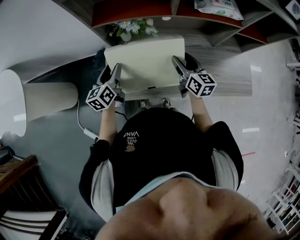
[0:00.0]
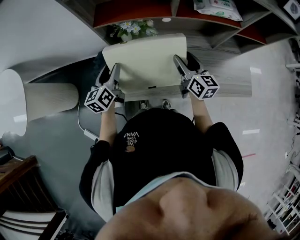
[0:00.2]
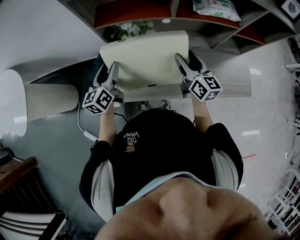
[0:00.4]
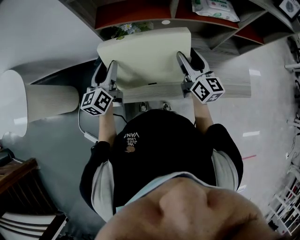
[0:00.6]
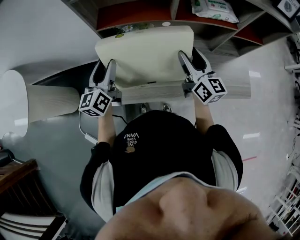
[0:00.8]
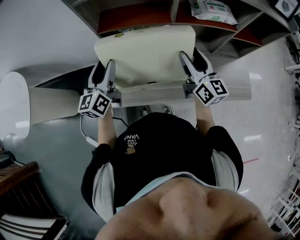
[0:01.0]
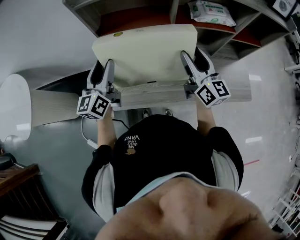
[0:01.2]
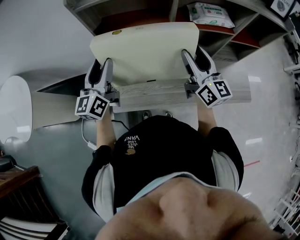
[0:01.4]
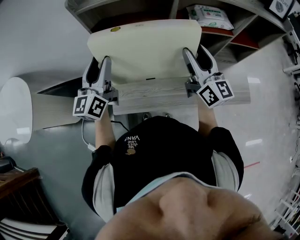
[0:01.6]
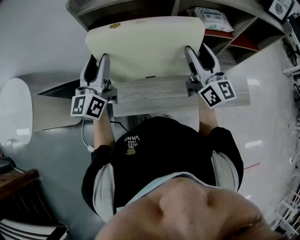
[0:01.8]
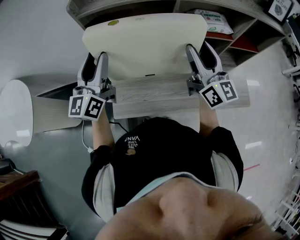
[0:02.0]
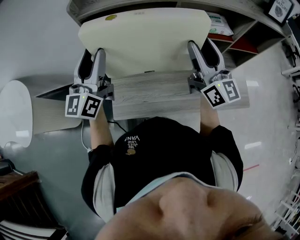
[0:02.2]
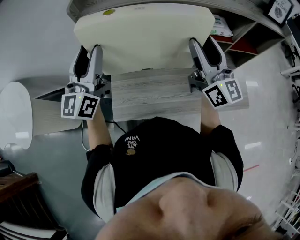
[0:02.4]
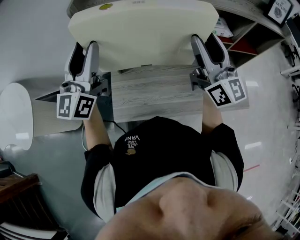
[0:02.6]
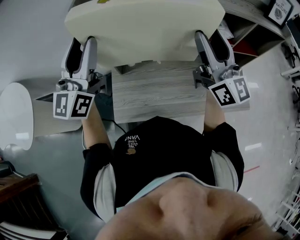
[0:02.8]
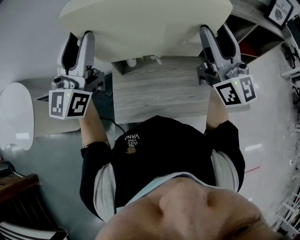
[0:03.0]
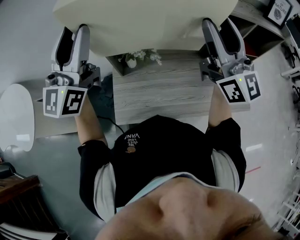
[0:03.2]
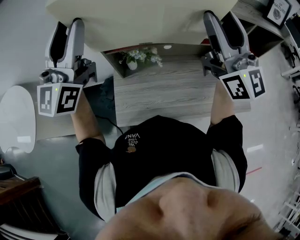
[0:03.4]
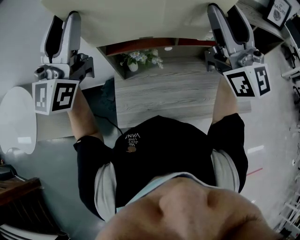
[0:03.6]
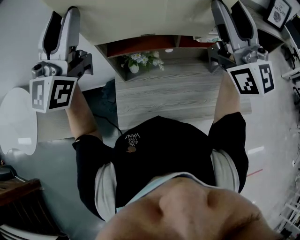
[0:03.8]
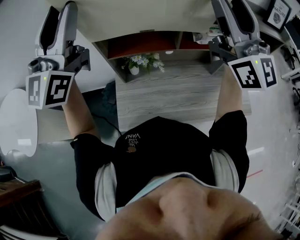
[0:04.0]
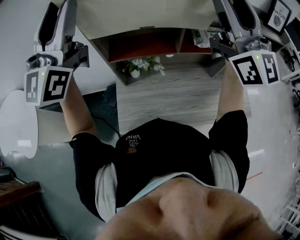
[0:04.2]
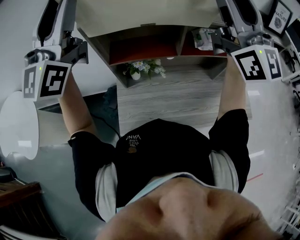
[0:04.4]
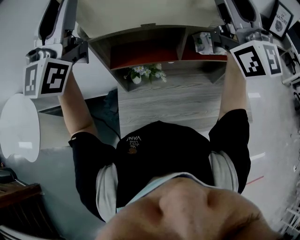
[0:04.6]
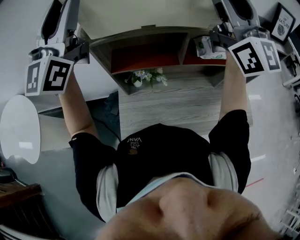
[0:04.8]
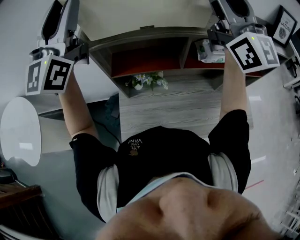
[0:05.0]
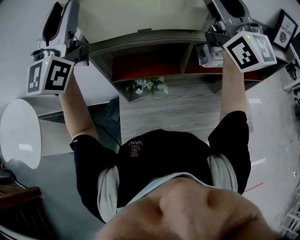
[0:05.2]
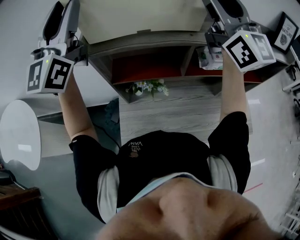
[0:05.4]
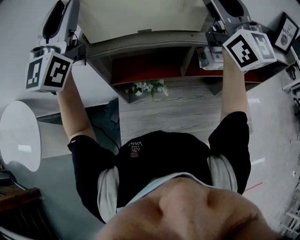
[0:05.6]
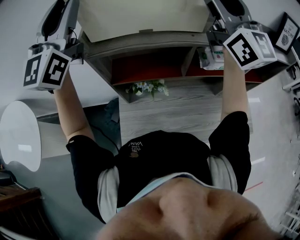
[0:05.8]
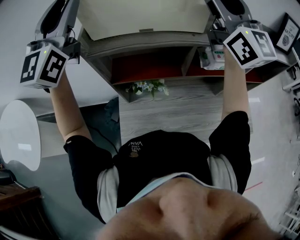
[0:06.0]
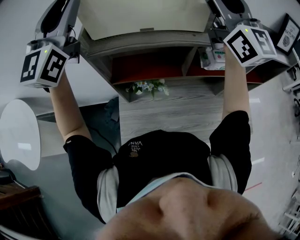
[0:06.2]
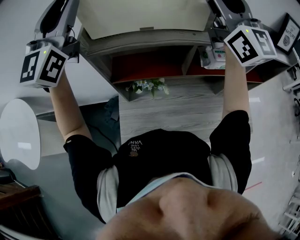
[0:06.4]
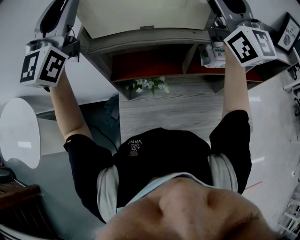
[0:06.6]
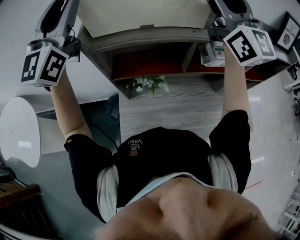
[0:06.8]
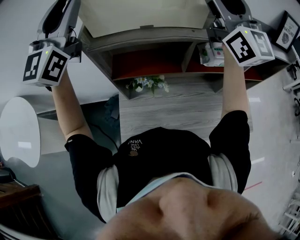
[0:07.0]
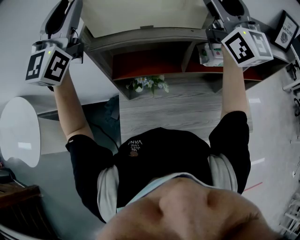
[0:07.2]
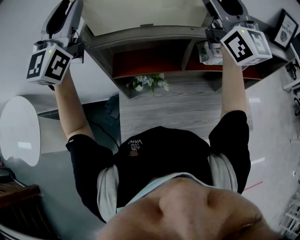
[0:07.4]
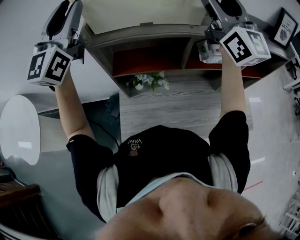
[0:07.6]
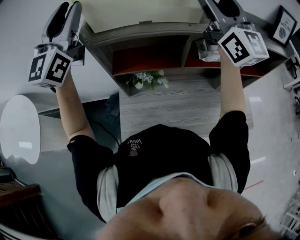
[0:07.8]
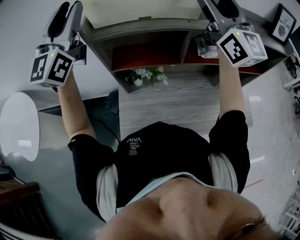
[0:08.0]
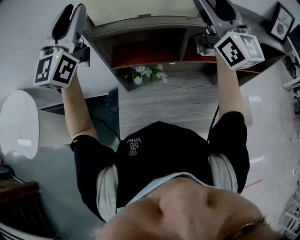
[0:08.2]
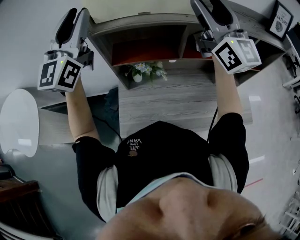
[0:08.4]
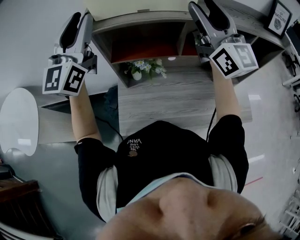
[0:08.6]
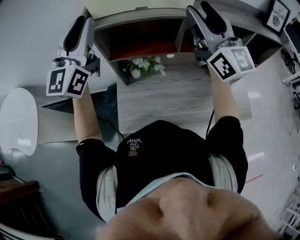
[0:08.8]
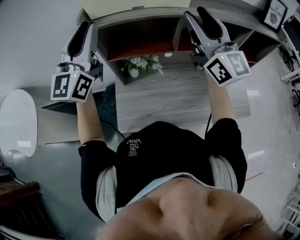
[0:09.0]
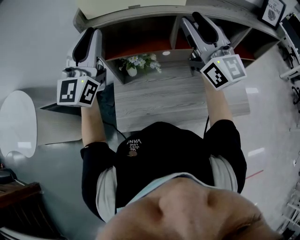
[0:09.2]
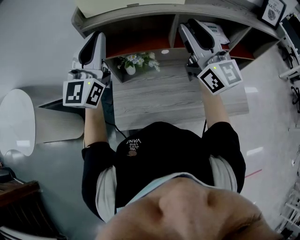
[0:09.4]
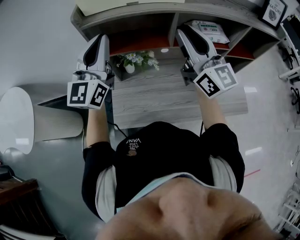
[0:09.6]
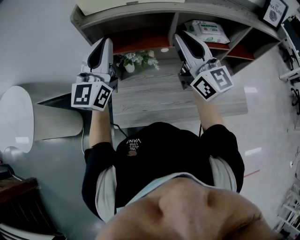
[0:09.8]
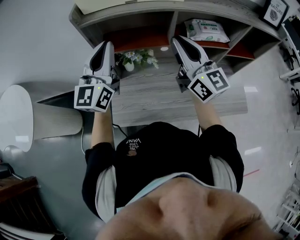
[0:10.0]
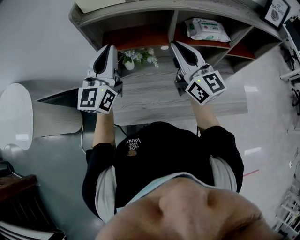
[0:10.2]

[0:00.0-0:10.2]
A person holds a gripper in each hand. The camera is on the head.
0:00.0 to 0:01.4: Both grippers move upward, some 20 cm. The left gripper rotates some 30 degrees, while the right gripper turns by roughly 30 degrees.
0:01.4 to 0:03.0: Both grippers travel together upward, about 20 cm. The right gripper rotates approximately 20 degrees. The left gripper turns by roughly 30 degrees.
0:03.0 to 0:04.4: Both grippers move upward, approximately 15 cm.
0:04.4 to 0:05.8: The grippers both shift forward by some 10 cm.
0:05.8 to 0:07.2: The grippers move only a little.
0:07.2 to 0:08.8: The right gripper heads downward and backward, covering some 10 cm; the left gripper shifts about 10 cm backward and downward.
0:08.8 to 0:10.2: The left gripper travels downward and to the right by some 15 cm. Meanwhile the right gripper moves downward, roughly 15 cm, and closes up.

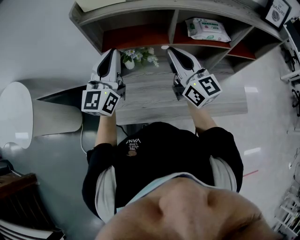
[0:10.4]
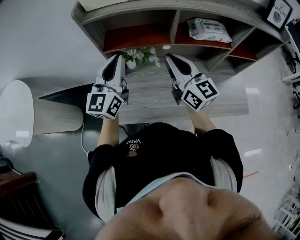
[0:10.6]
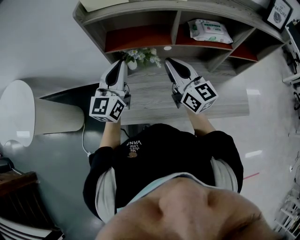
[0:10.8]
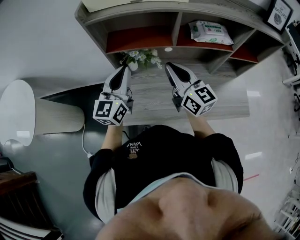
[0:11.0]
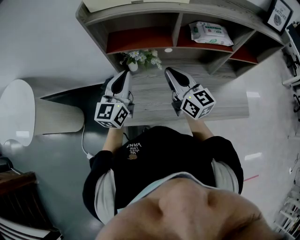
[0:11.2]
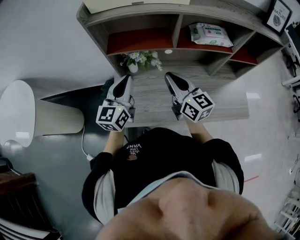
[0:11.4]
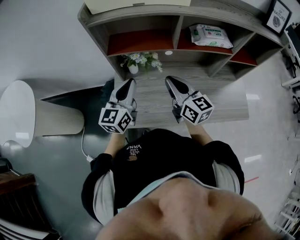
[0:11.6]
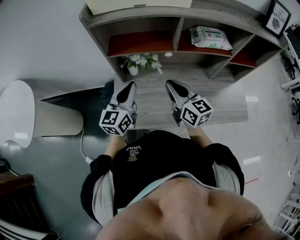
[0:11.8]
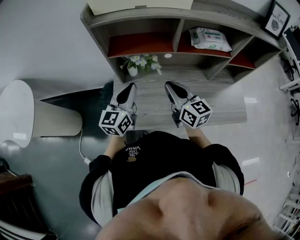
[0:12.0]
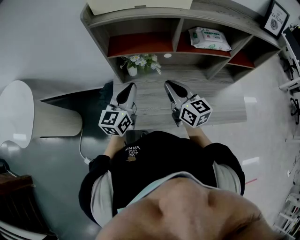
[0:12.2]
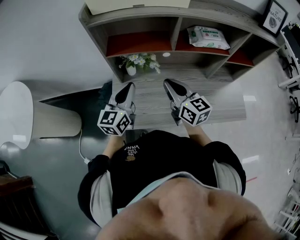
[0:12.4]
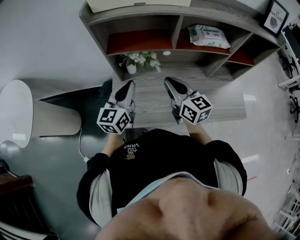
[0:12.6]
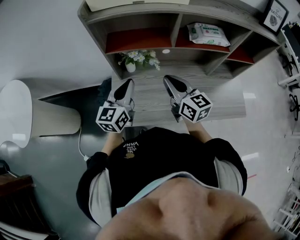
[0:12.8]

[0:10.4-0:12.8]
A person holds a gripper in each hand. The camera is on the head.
0:10.4 to 0:11.6: The grippers both shift downward by about 10 cm.
0:11.6 to 0:12.8: The grippers stay close to where they were, moving slightly.

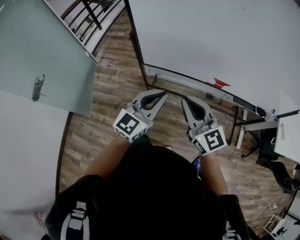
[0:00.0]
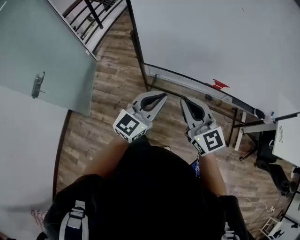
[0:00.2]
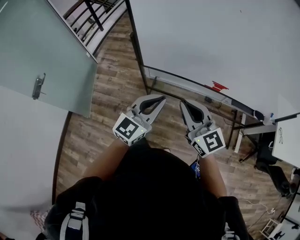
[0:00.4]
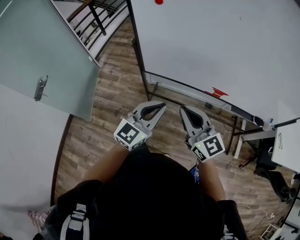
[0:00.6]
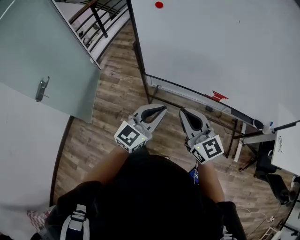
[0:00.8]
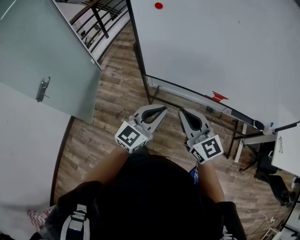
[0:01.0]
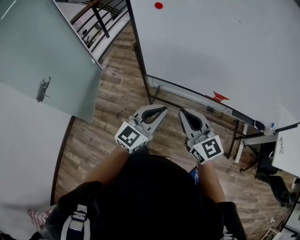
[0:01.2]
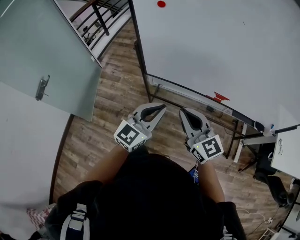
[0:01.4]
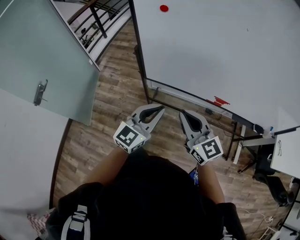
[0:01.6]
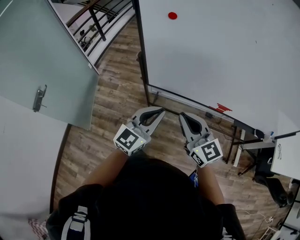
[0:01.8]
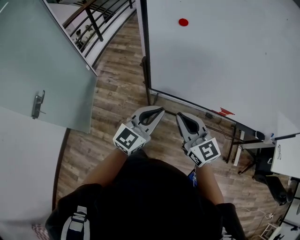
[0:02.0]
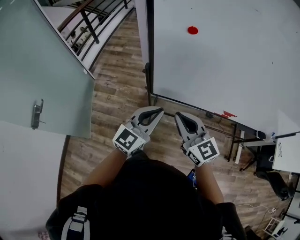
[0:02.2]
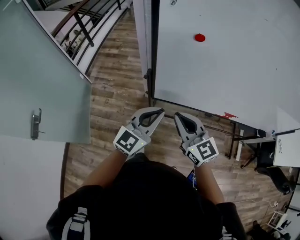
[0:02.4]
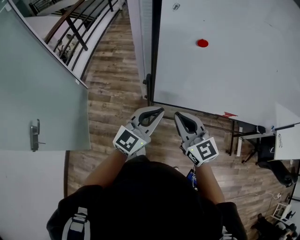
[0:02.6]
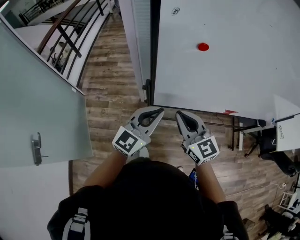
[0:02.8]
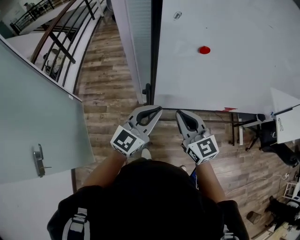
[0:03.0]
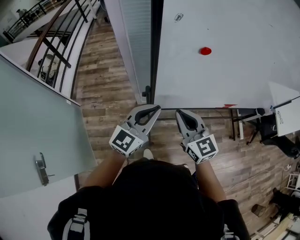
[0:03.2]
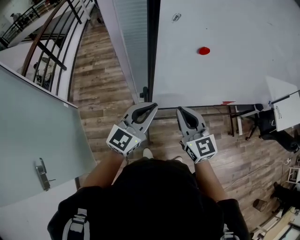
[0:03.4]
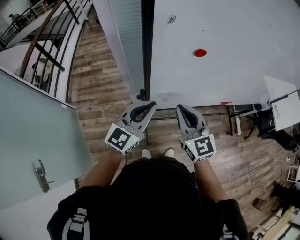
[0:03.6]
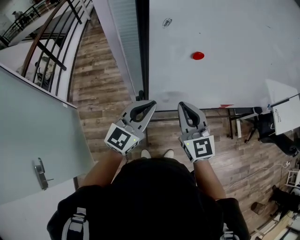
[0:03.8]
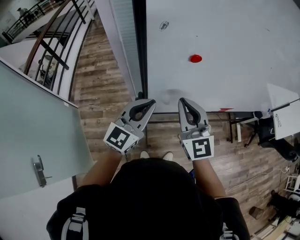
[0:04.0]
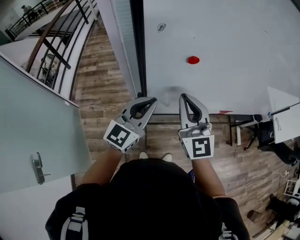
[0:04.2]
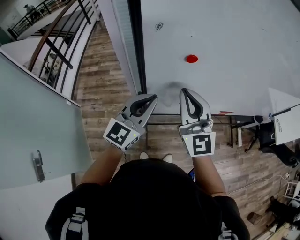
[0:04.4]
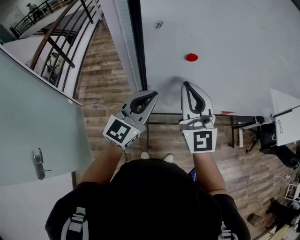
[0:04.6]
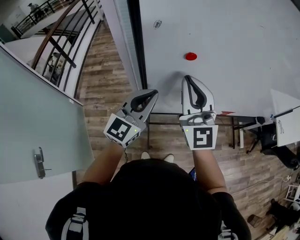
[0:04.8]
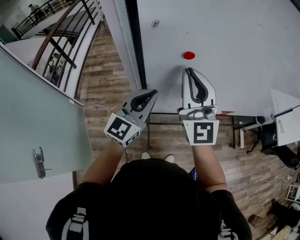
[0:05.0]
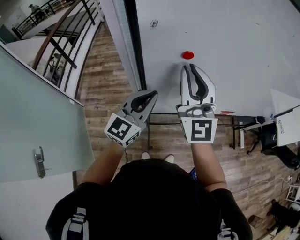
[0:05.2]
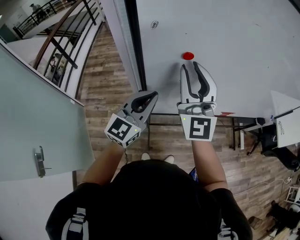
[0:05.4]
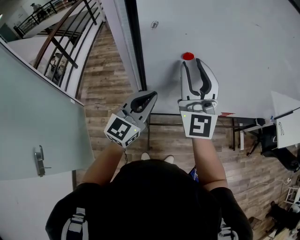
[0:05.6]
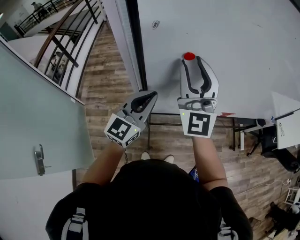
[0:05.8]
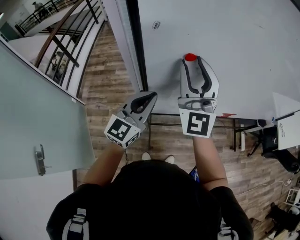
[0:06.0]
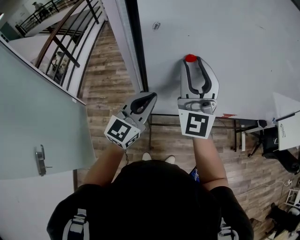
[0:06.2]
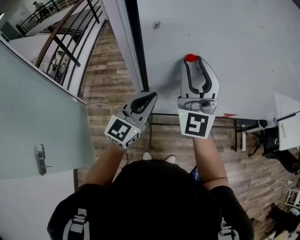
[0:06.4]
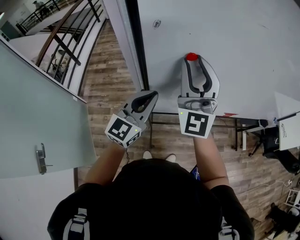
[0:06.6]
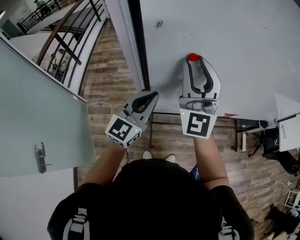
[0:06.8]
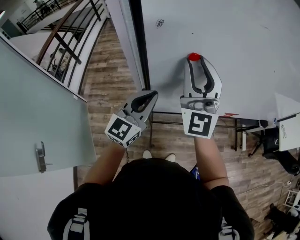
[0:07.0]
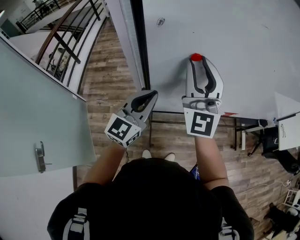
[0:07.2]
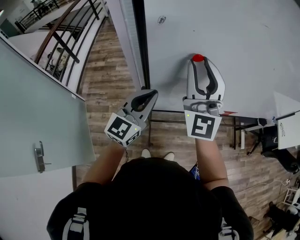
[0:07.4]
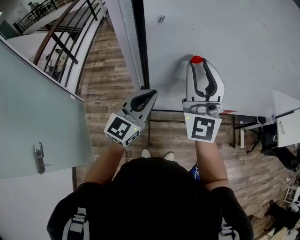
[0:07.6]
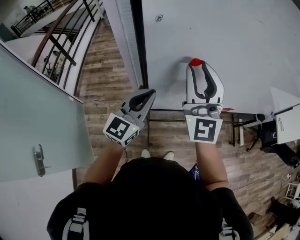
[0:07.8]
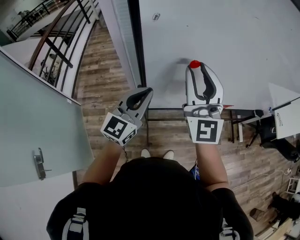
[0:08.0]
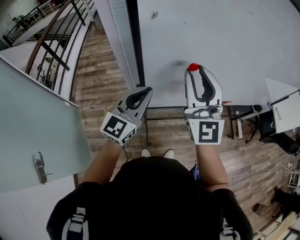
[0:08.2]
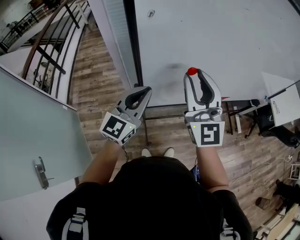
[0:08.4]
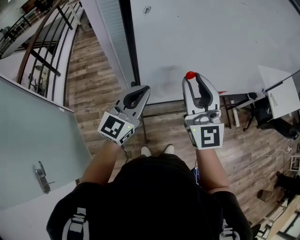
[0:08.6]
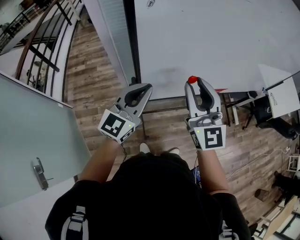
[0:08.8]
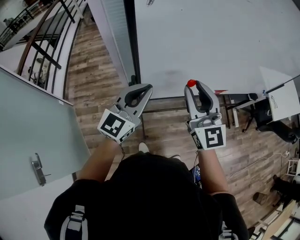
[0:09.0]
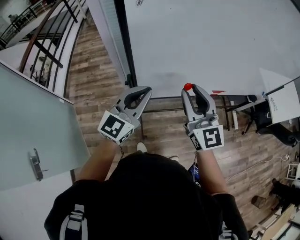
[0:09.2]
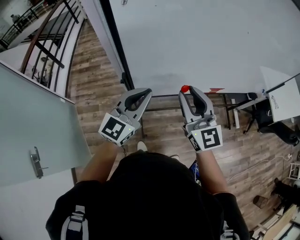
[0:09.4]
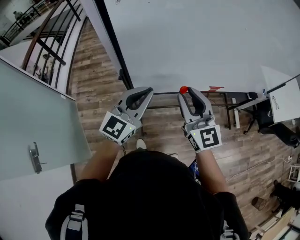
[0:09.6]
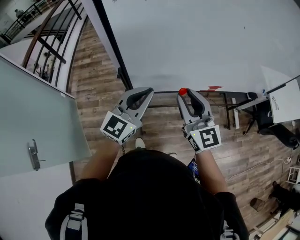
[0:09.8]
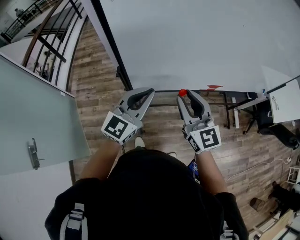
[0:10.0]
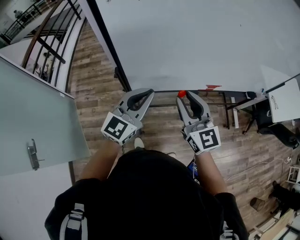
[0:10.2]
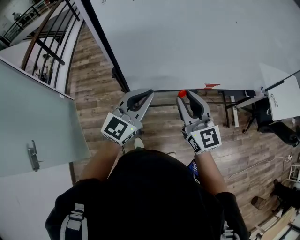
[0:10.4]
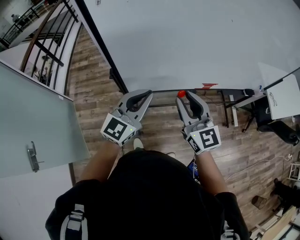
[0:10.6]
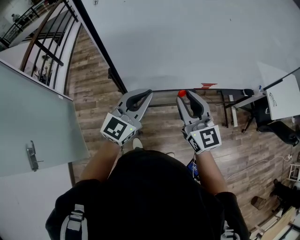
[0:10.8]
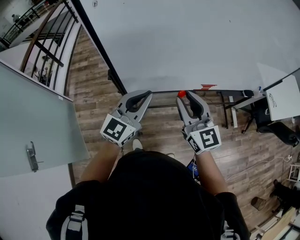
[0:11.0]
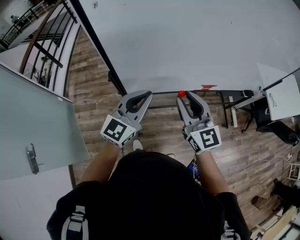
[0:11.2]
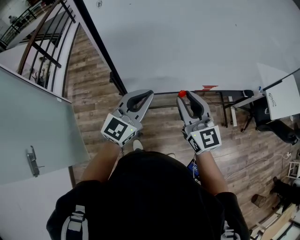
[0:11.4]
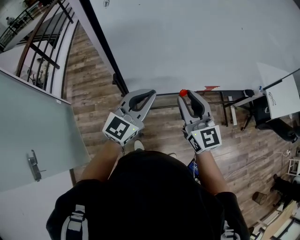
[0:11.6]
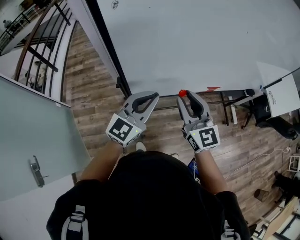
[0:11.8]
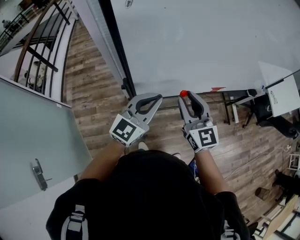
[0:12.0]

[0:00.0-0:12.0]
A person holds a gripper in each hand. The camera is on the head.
0:00.0 to 0:01.6: The grippers stay close to where they were, moving slightly.
0:01.6 to 0:03.0: The right gripper heads to the left and forward, covering some 25 cm, and rotates roughly 20 degrees; the left gripper moves forward and to the left, roughly 25 cm.
0:03.0 to 0:04.4: The left gripper shifts about 10 cm forward and upward, while the right gripper heads upward and forward, covering about 15 cm, and turns by approximately 30 degrees.
0:04.4 to 0:06.0: The right gripper is displaced upward by roughly 10 cm, and opens.
0:06.0 to 0:07.6: The grippers make only small movements.
0:07.6 to 0:09.0: The right gripper shifts approximately 15 cm downward and backward, and swivels about 20 degrees.
0:09.0 to 0:10.4: The left gripper shifts about 10 cm to the right, while the right gripper goes roughly 10 cm to the right and downward.
0:10.4 to 0:12.0: Both grippers travel together to the left, some 5 cm.
